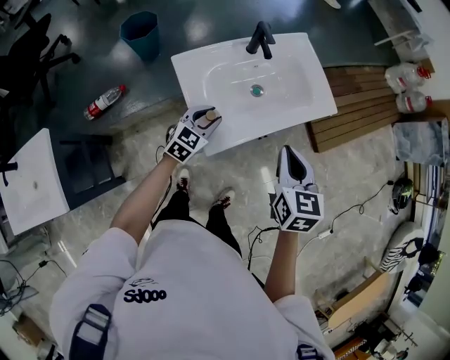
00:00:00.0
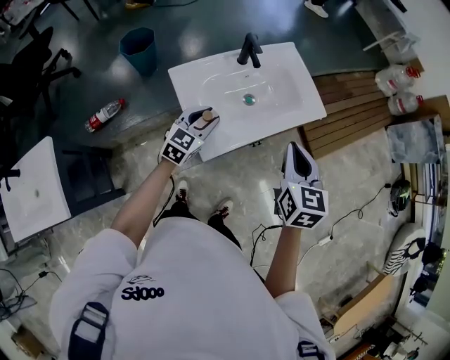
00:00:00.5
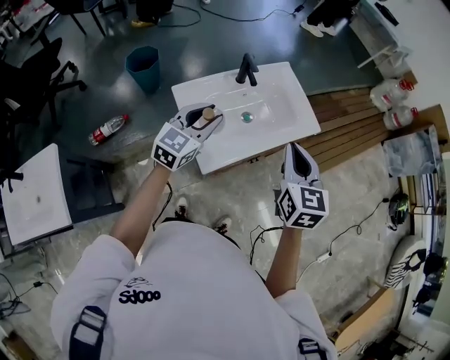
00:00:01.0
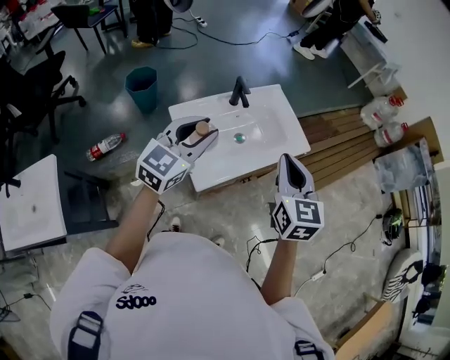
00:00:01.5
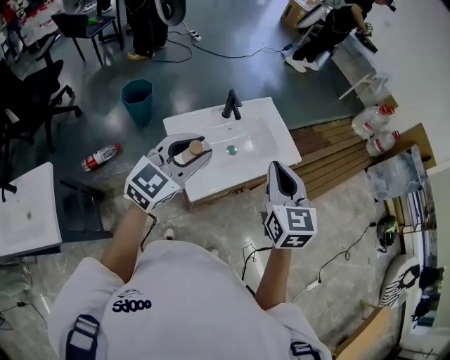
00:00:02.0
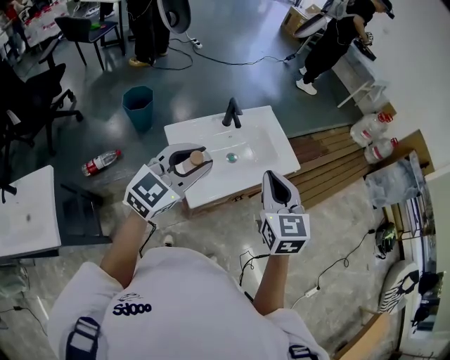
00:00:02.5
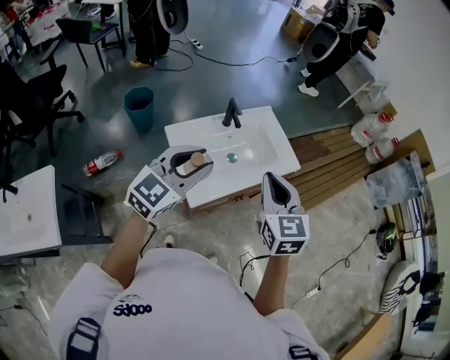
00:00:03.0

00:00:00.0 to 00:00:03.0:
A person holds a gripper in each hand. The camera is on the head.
00:00:00.0 to 00:00:01.5: The right gripper heads upward, covering roughly 10 cm. Meanwhile the left gripper is displaced upward by some 30 cm, and turns by about 20 degrees.
00:00:01.5 to 00:00:03.0: The left gripper ends up approximately 5 cm from where it was.

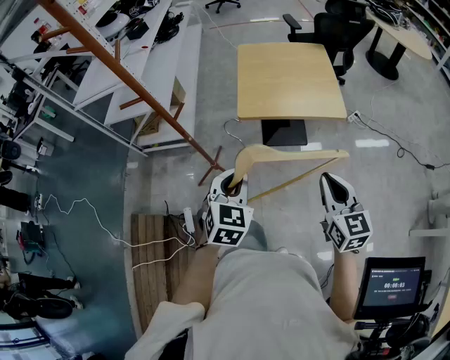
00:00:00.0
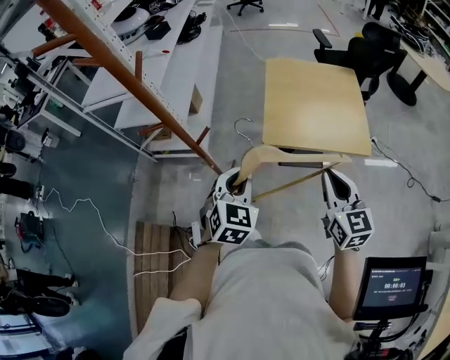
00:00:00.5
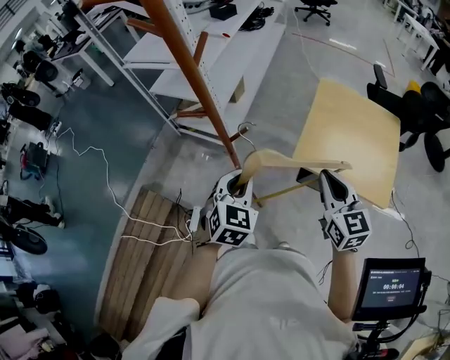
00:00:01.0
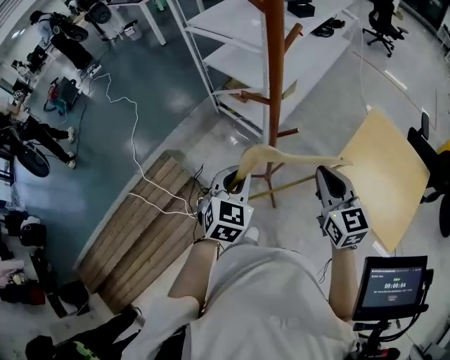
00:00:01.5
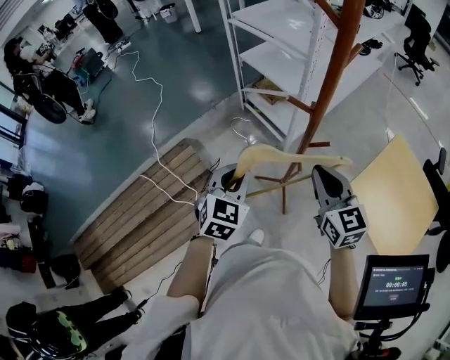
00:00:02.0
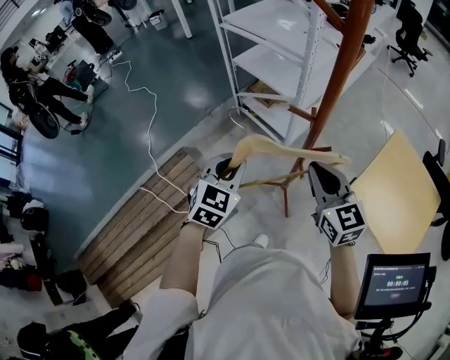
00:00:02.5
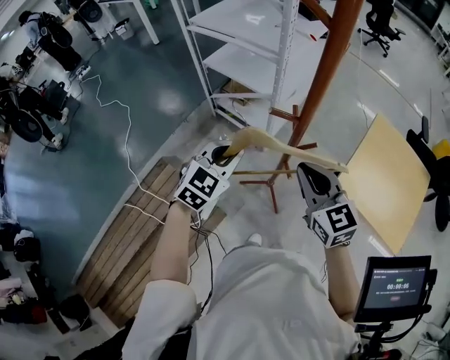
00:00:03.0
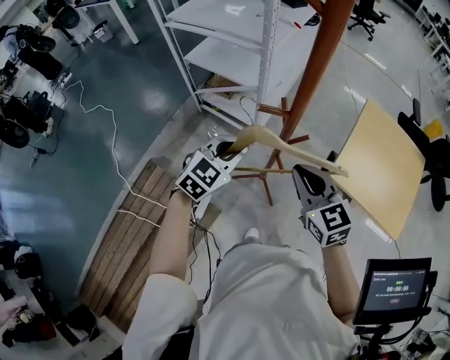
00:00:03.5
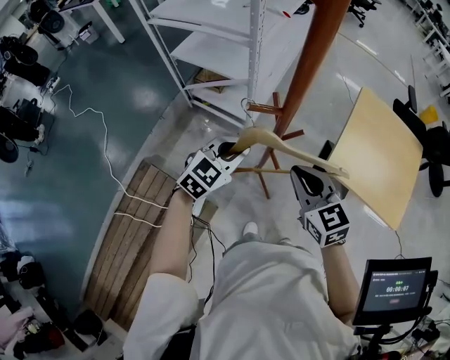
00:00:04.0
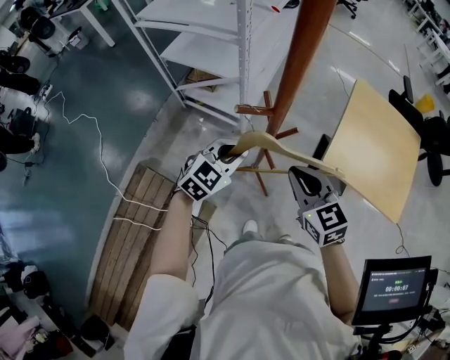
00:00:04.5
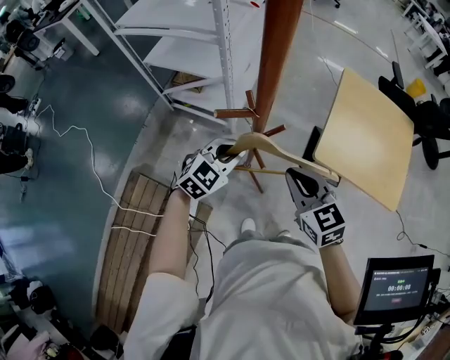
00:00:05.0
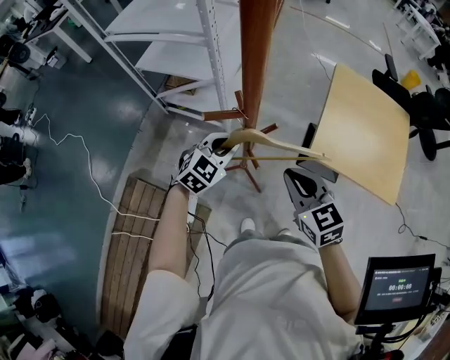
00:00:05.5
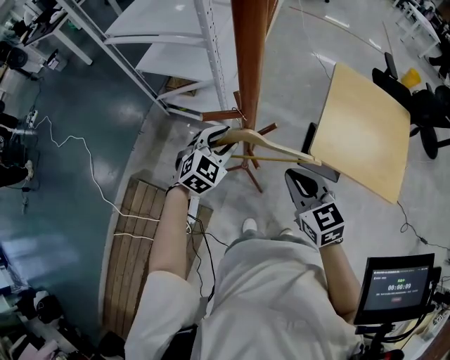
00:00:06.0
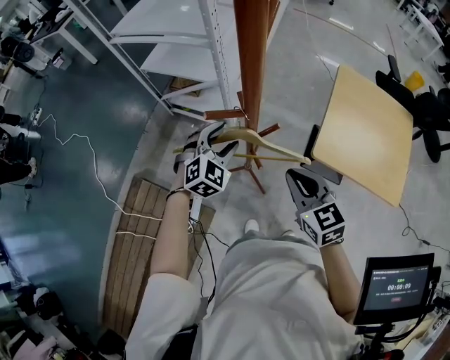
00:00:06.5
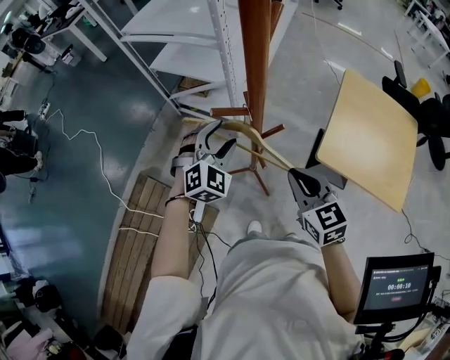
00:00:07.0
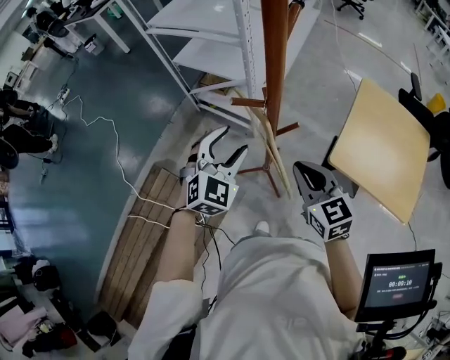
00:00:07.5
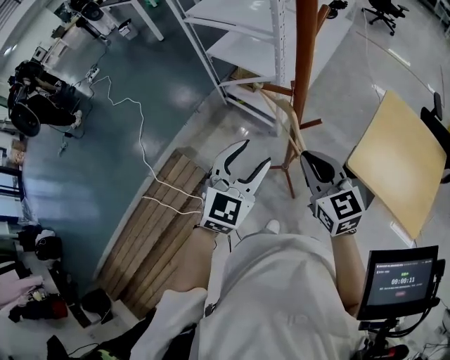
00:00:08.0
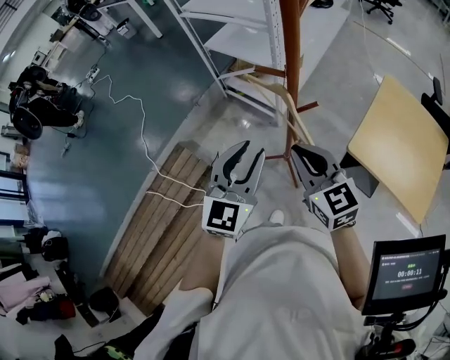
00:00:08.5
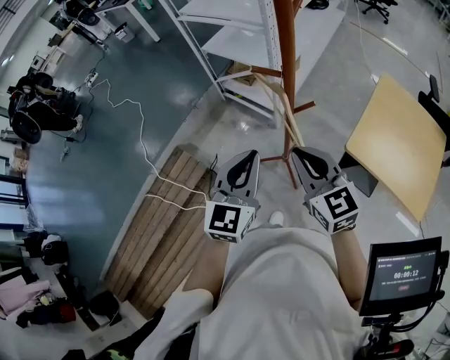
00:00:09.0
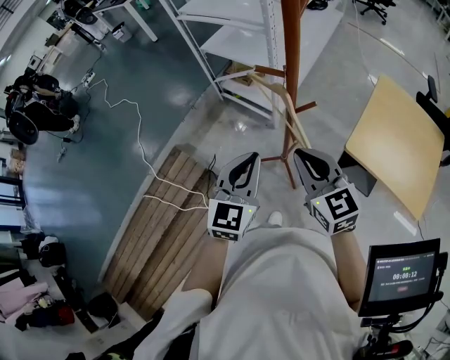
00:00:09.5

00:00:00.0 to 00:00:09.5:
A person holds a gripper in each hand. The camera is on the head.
00:00:00.0 to 00:00:02.0: The right gripper changes place by about 50 cm, and changes its angle by roughly 60 degrees; the left gripper moves approximately 35 cm, and turns by roughly 50 degrees.
00:00:02.0 to 00:00:04.0: The right gripper heads downward, covering some 5 cm. Meanwhile the left gripper moves roughly 15 cm, and changes its angle by about 50 degrees.
00:00:04.0 to 00:00:05.5: The right gripper changes place by roughly 5 cm. Meanwhile the left gripper heads downward, covering roughly 5 cm.
00:00:05.5 to 00:00:07.5: The left gripper shifts approximately 15 cm upward, to the left and backward, changes its angle by about 30 degrees, and opens.
00:00:07.5 to 00:00:09.5: The right gripper moves about 5 cm. The left gripper is displaced backward by about 10 cm, changes its angle by roughly 30 degrees, and closes.

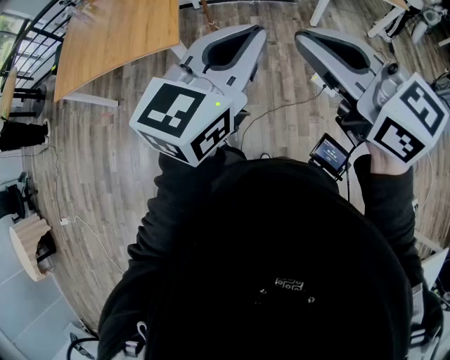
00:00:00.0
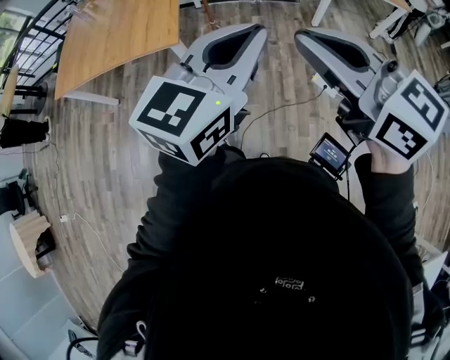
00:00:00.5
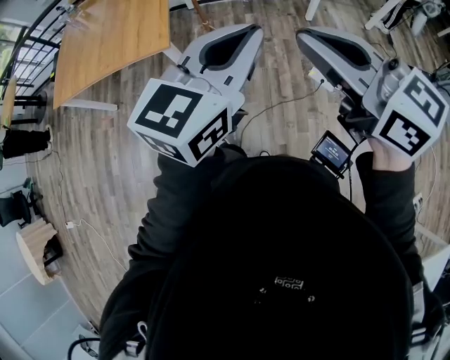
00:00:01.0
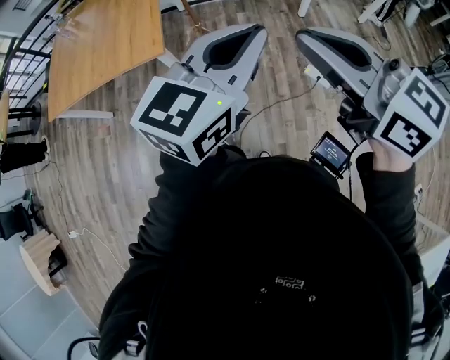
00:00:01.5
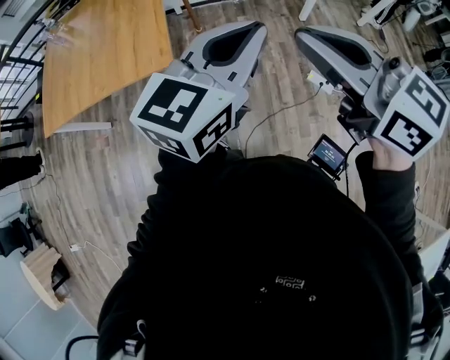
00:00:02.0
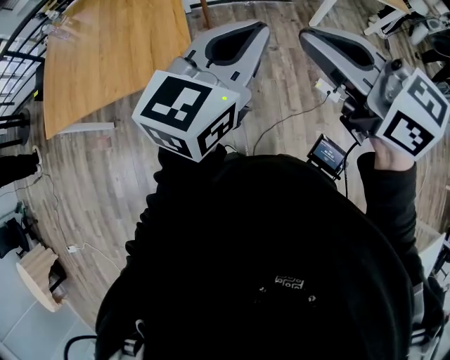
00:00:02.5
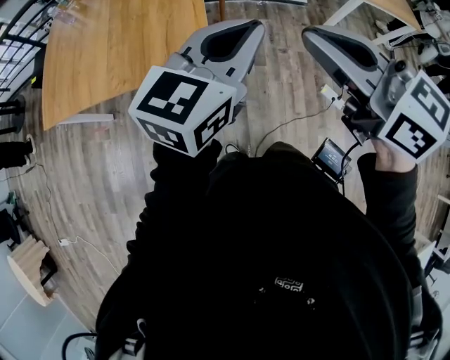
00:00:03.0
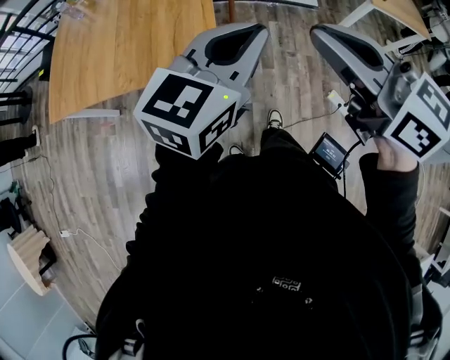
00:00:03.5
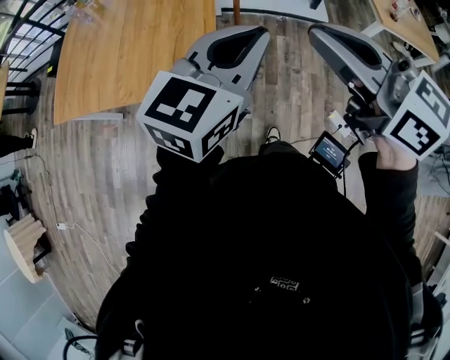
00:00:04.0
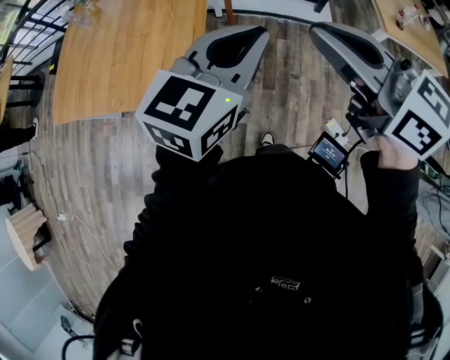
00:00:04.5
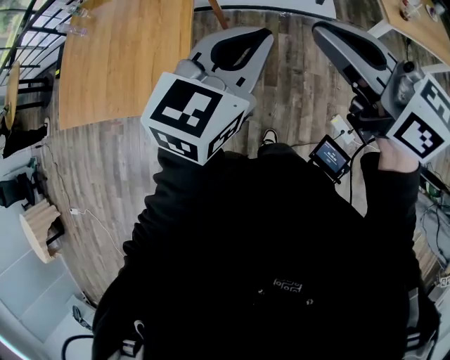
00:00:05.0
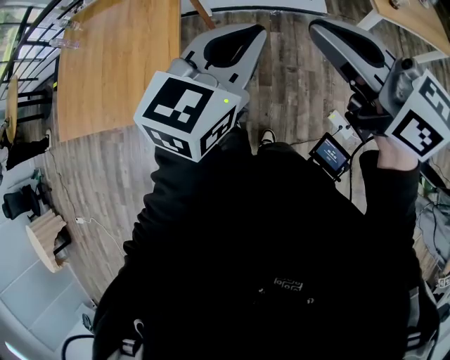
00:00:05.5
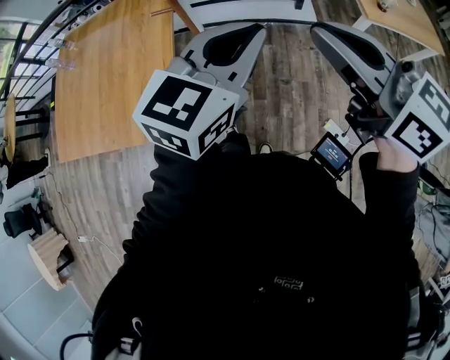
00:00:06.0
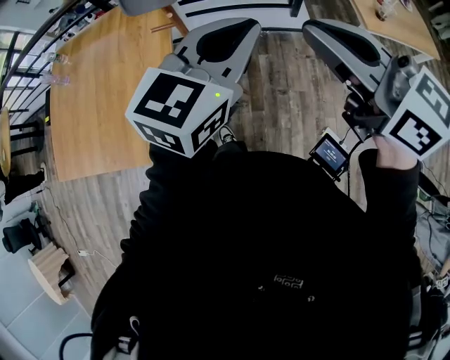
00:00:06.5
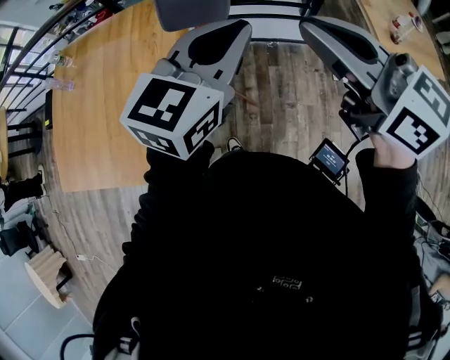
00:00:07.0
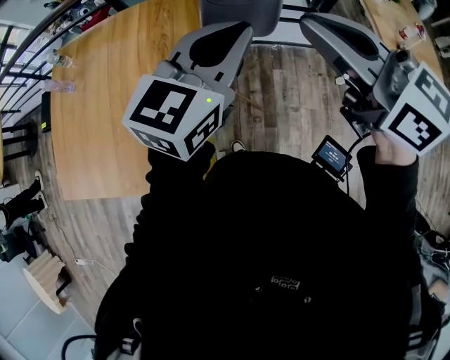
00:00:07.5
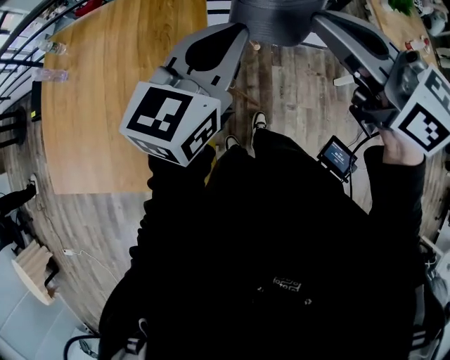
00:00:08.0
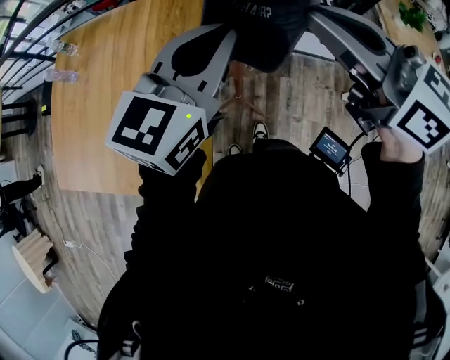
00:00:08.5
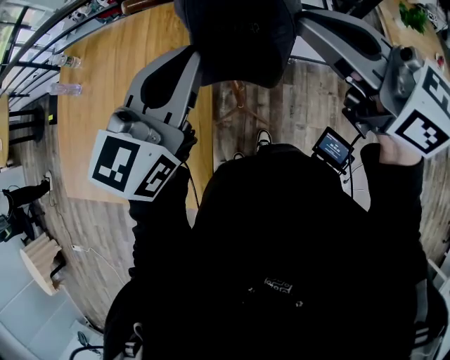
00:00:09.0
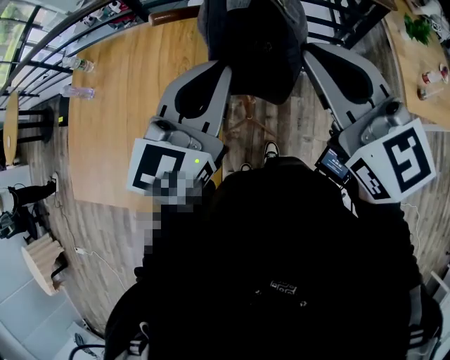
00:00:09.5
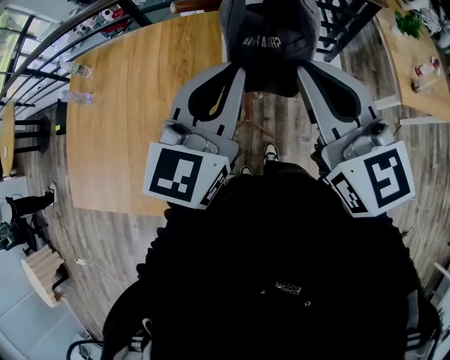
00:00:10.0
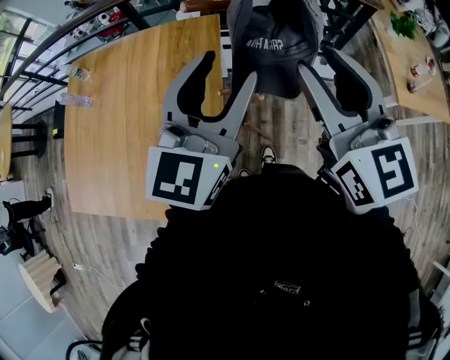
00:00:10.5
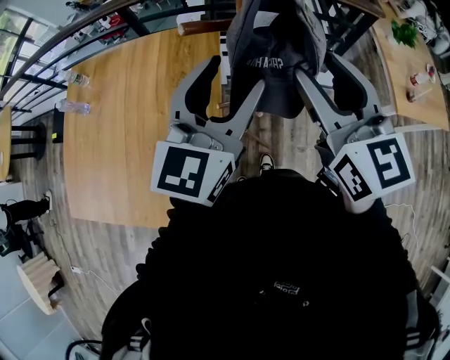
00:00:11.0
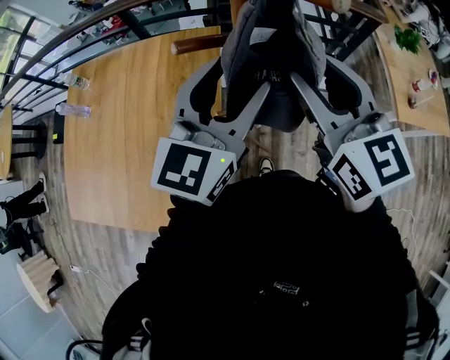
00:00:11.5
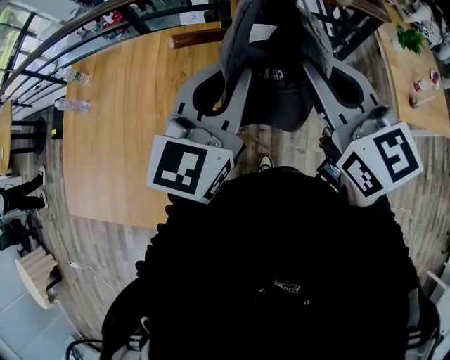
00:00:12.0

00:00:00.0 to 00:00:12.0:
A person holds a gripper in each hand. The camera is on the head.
00:00:00.0 to 00:00:02.0: The grippers both shift forward by approximately 10 cm.
00:00:02.0 to 00:00:04.0: The two grippers go approximately 25 cm forward and to the left.
00:00:04.0 to 00:00:06.0: The grippers both shift to the right and forward by some 25 cm.
00:00:06.0 to 00:00:08.0: The two grippers go about 35 cm forward and to the left.
00:00:08.0 to 00:00:10.0: The right gripper rotates roughly 20 degrees.
00:00:10.0 to 00:00:12.0: Both grippers travel together forward, some 5 cm. The right gripper opens, then closes again. The left gripper opens and closes again.

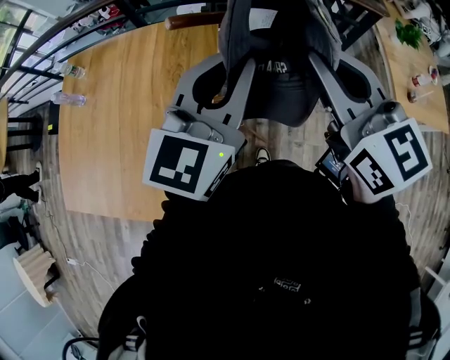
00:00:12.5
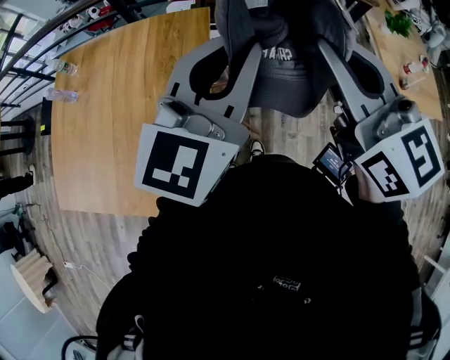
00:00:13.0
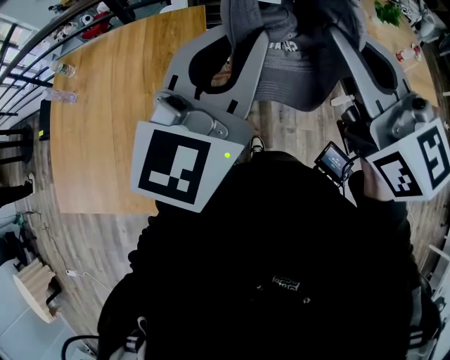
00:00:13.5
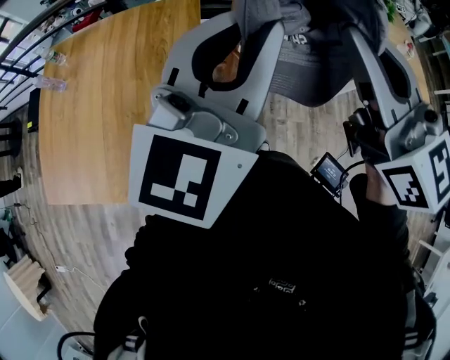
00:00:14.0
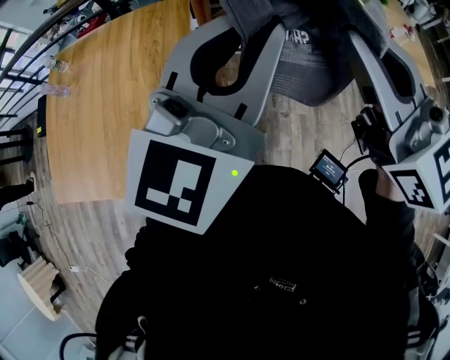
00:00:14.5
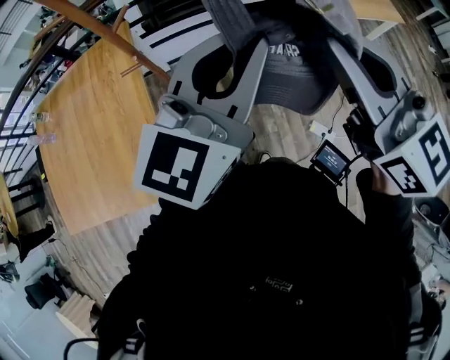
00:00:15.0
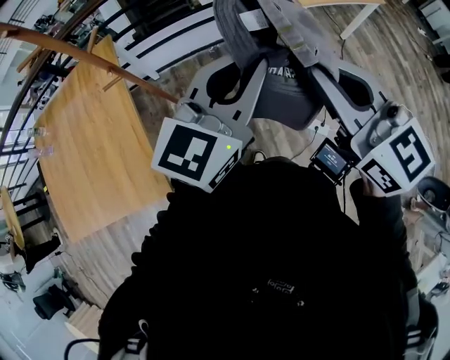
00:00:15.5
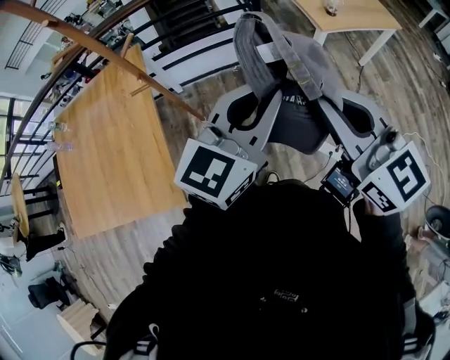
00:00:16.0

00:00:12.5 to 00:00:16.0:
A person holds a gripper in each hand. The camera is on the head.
00:00:12.5 to 00:00:14.5: Both grippers move backward, about 15 cm.
00:00:14.5 to 00:00:16.0: The right gripper goes roughly 30 cm to the right and backward. The left gripper is displaced to the right by some 25 cm, and turns by roughly 20 degrees.
